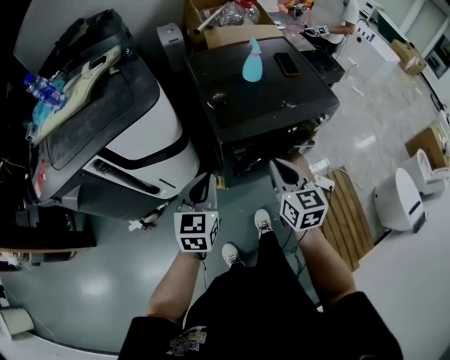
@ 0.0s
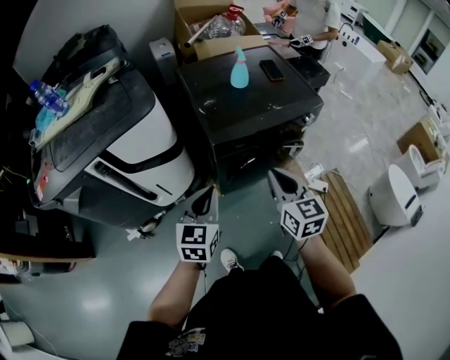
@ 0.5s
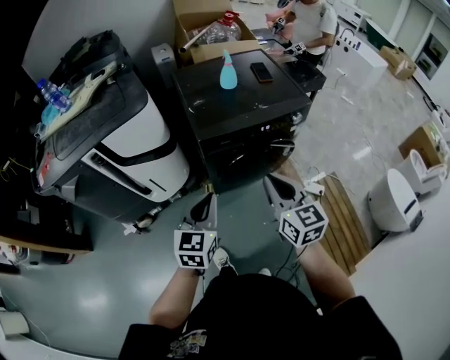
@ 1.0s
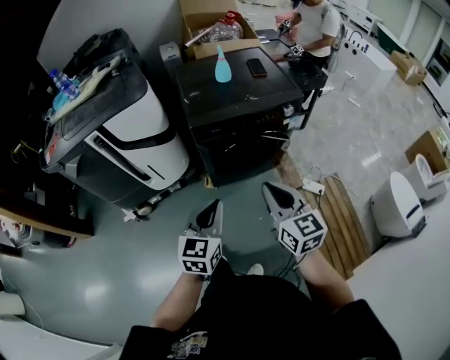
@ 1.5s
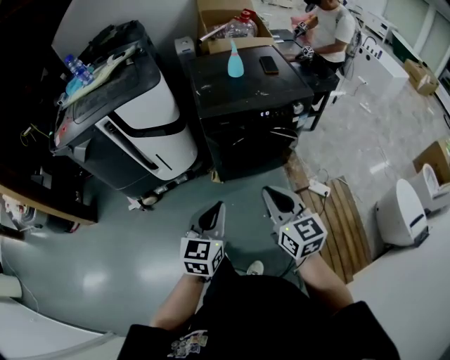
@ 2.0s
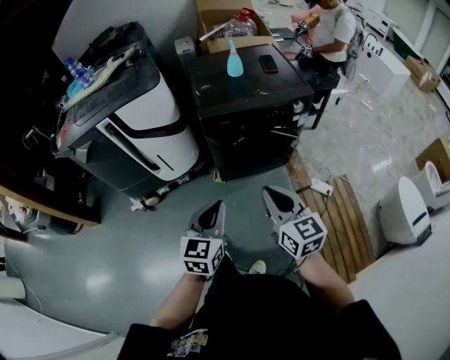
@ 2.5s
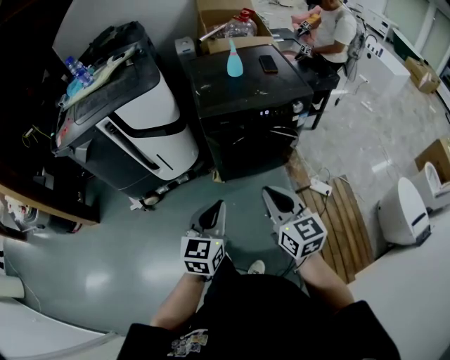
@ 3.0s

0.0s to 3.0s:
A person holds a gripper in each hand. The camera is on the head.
0.0s to 1.5s: Both grippers travel together backward and to the right, about 30 cm.
1.5s to 3.0s: The grippers stay close to where they were, moving slightly.

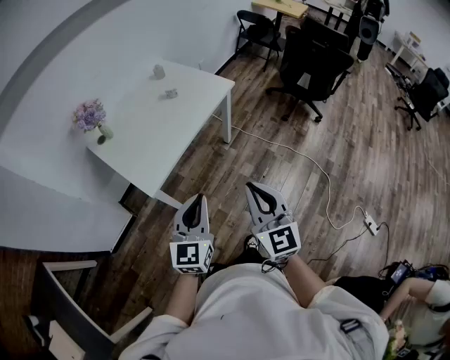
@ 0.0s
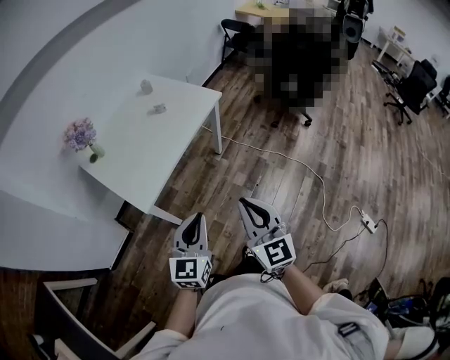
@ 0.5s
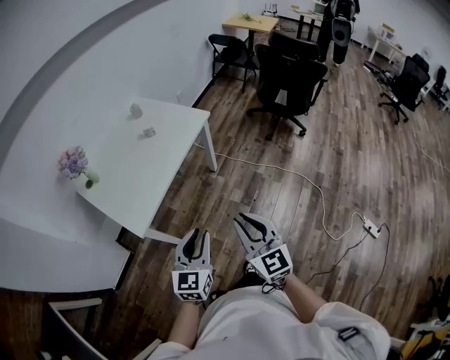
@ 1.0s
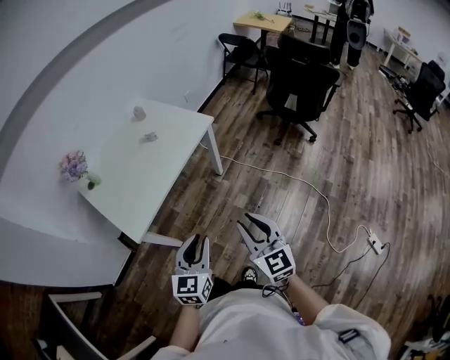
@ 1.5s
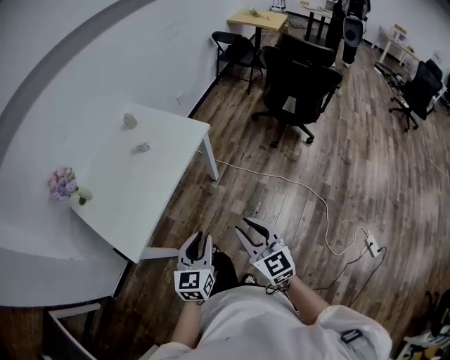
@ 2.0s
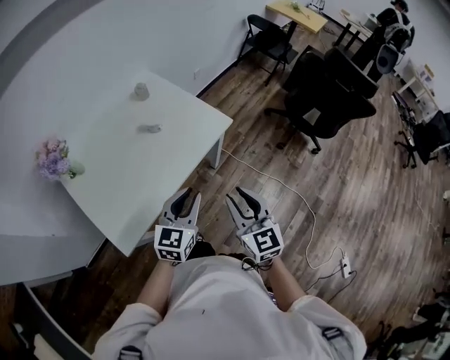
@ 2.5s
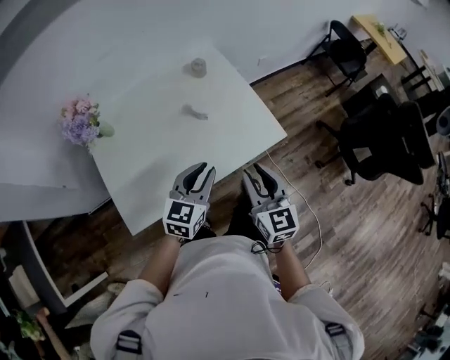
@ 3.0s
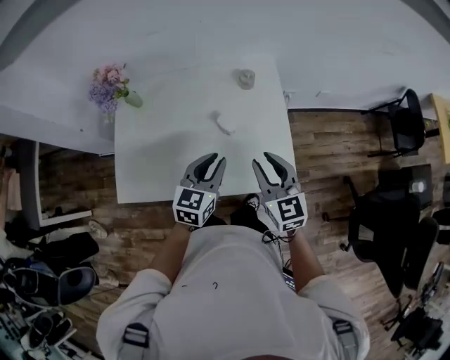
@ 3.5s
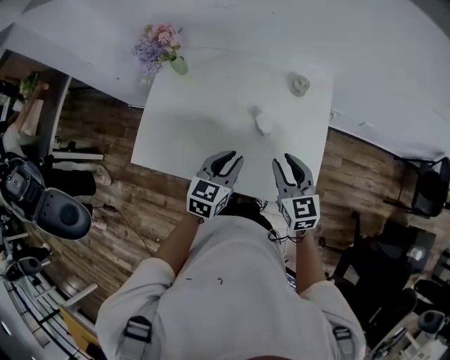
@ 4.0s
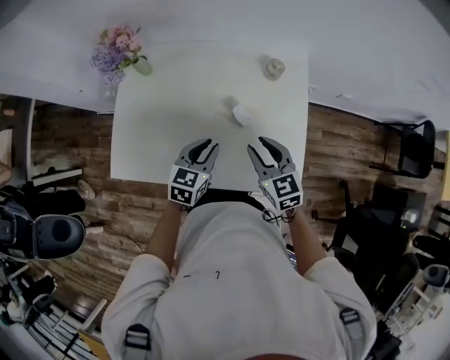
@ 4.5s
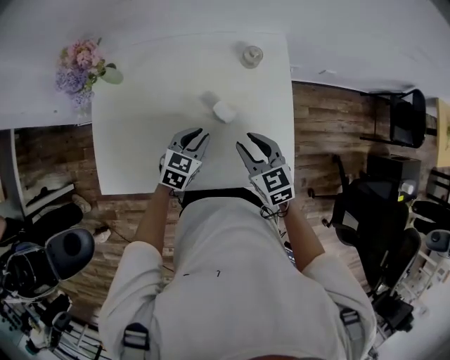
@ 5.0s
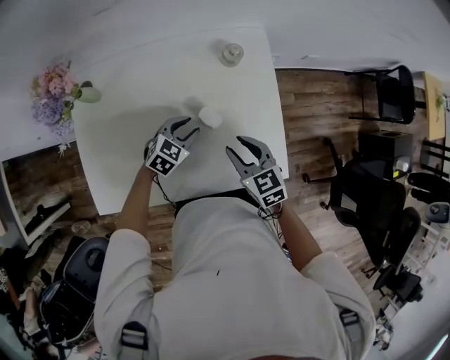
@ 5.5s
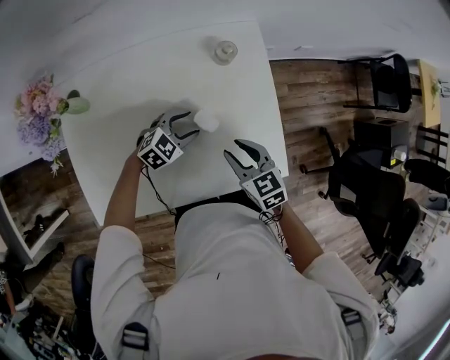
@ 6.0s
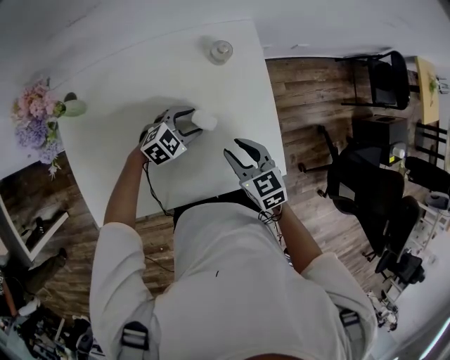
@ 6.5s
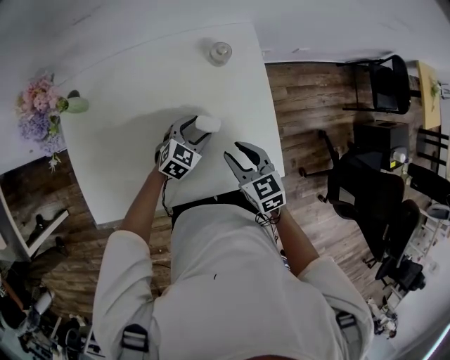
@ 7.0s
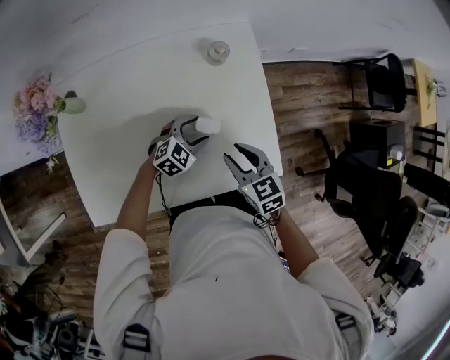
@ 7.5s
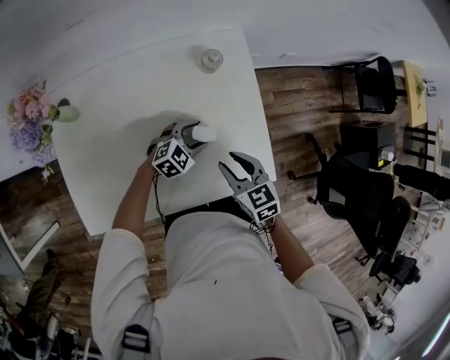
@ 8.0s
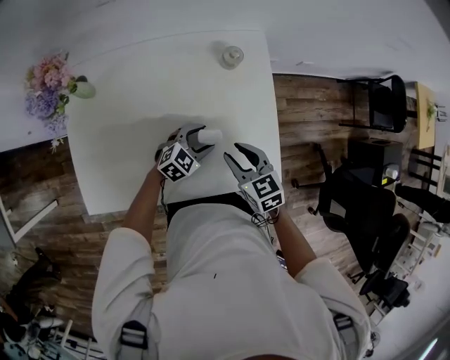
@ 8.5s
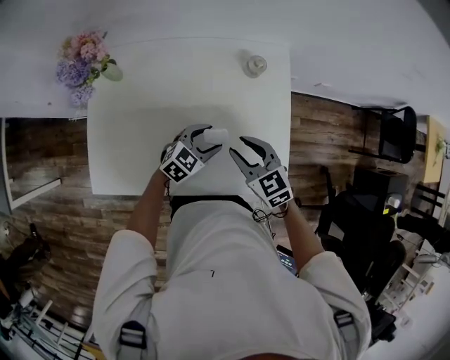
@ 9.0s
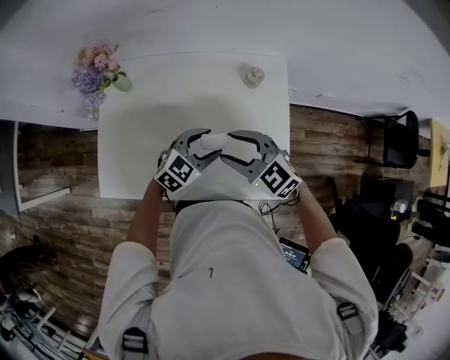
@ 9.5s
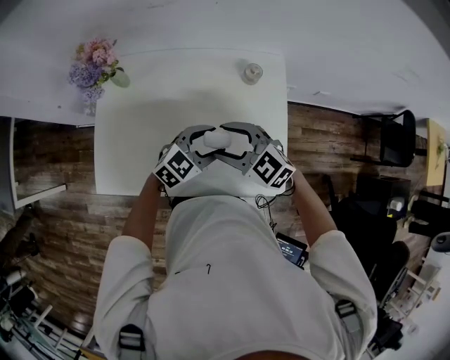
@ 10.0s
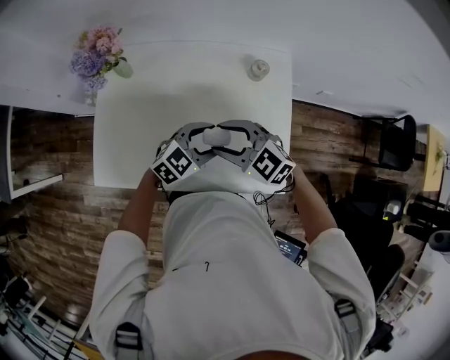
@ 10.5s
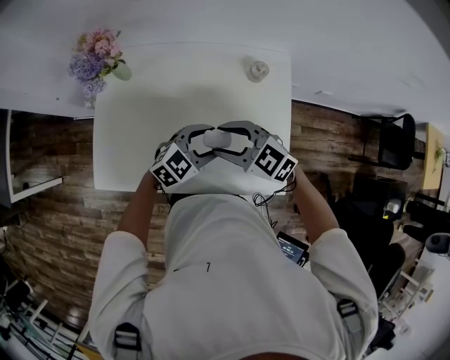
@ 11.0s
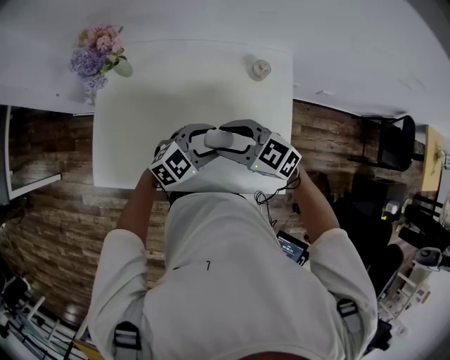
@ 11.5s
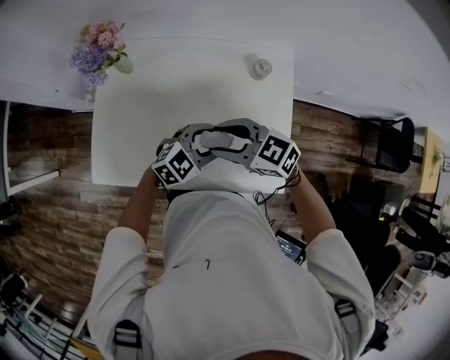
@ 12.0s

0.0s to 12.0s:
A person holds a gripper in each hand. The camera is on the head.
0.0s to 2.0s: The two grippers go roughly 20 cm forward, to the right and downward. The right gripper opens.
2.0s to 4.0s: The pair of grippers is taken approximately 50 cm. The right gripper rotates some 60 degrees, while the left gripper turns by roughly 50 degrees.
4.0s to 6.0s: The left gripper travels downward by approximately 15 cm, swivels about 60 degrees, and opens up. Meanwhile the right gripper moves downward, some 10 cm, and rotates some 20 degrees.
6.0s to 8.0s: The left gripper is displaced to the right by some 5 cm.
8.0s to 10.0s: The left gripper heads upward, covering about 15 cm. Meanwhile the right gripper is displaced upward by approximately 10 cm, rotates approximately 50 degrees, and opens.

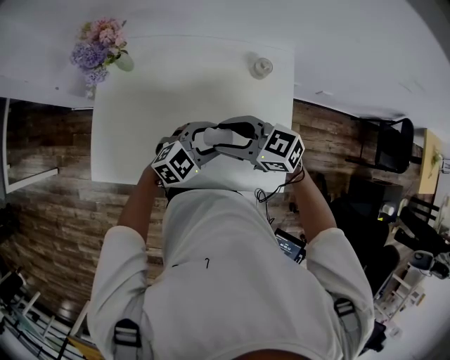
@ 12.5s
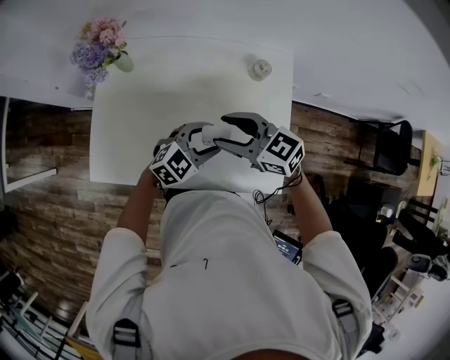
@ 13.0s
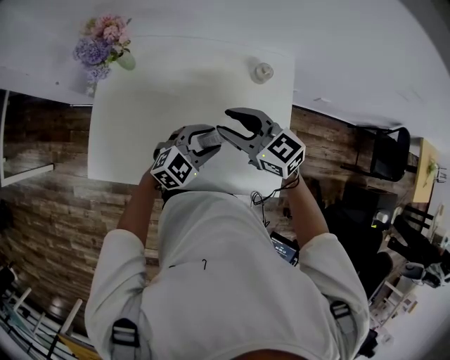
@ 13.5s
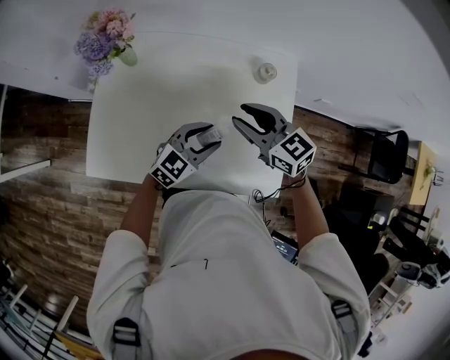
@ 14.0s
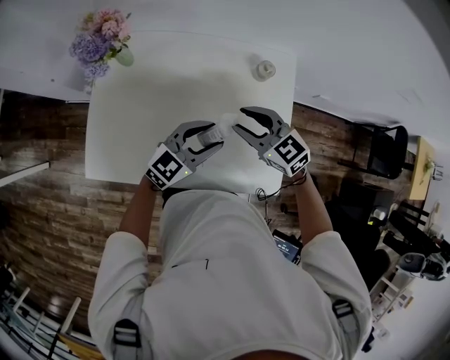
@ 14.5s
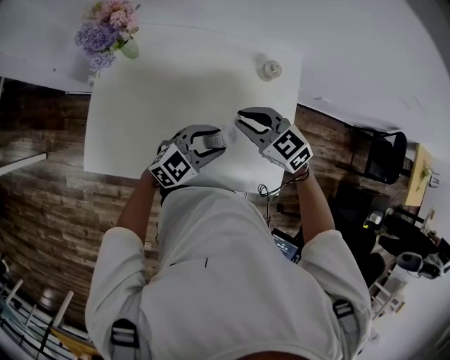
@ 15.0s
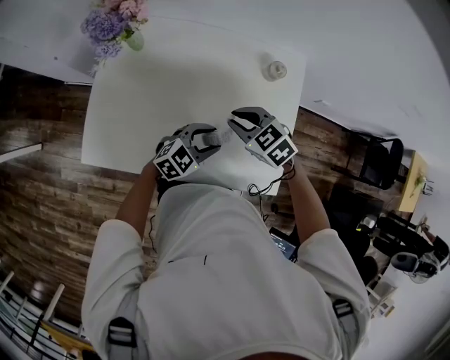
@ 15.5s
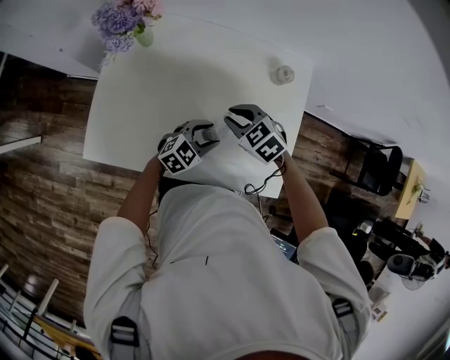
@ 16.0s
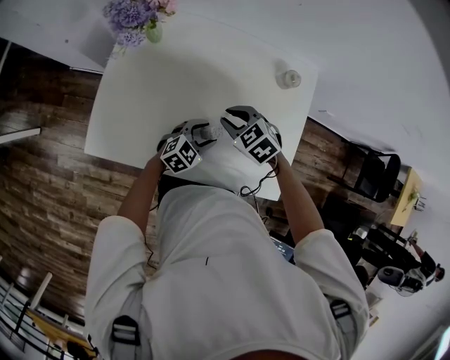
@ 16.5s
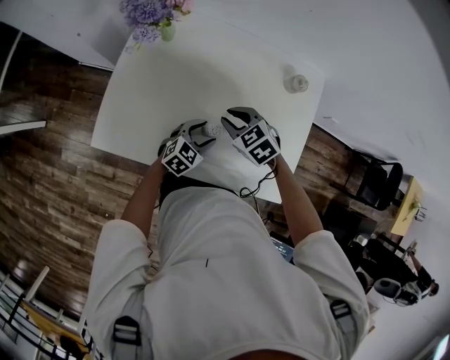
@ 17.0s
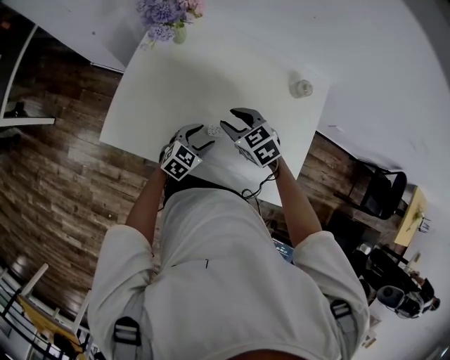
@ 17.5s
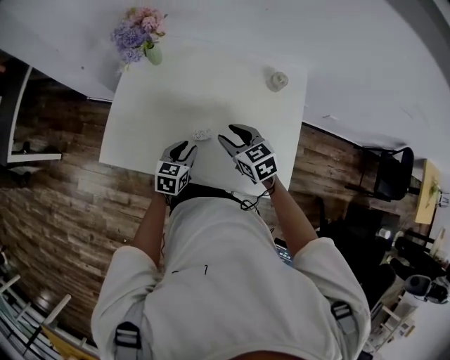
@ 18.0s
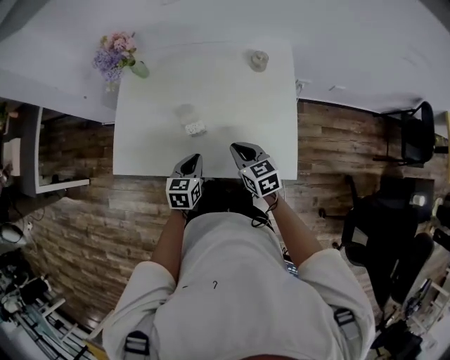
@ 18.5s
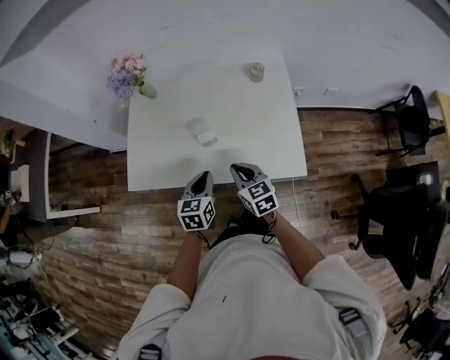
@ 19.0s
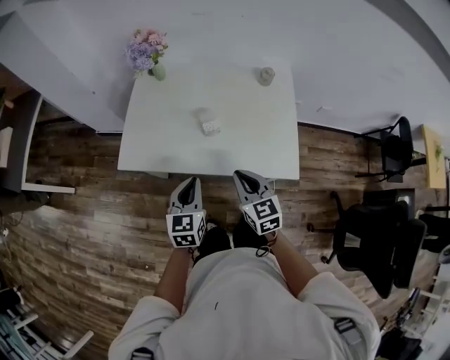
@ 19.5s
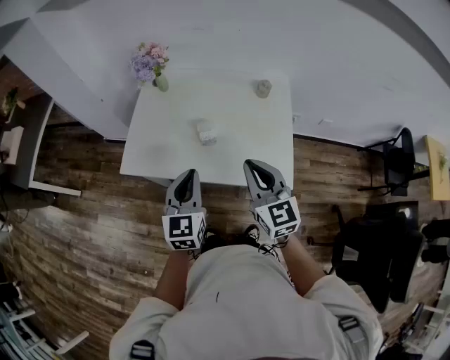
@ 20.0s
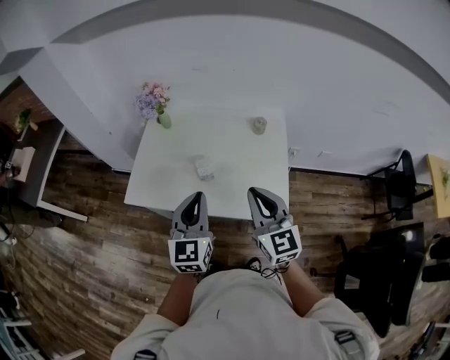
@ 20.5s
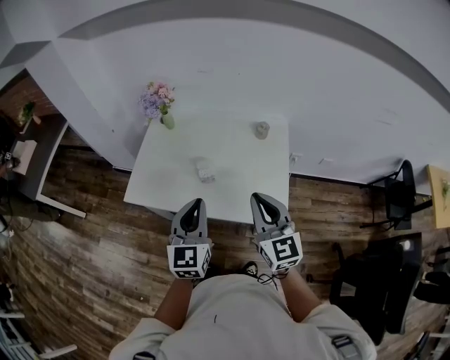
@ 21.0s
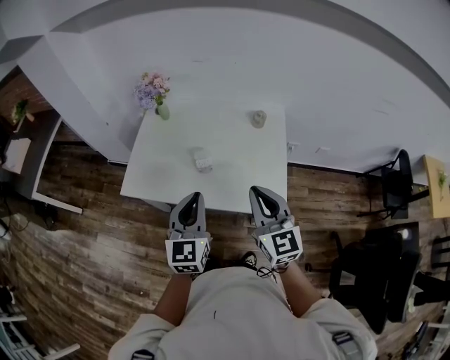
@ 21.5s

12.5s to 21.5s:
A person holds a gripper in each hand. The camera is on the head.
12.5s to 14.5s: The right gripper shifts by about 10 cm, and swivels approximately 20 degrees. The left gripper turns by some 20 degrees.
14.5s to 17.0s: The right gripper is displaced to the left and downward by some 15 cm, and swivels about 20 degrees; the left gripper moves downward and to the left, roughly 20 cm, and rotates approximately 30 degrees.
17.0s to 19.5s: The left gripper moves backward, upward and to the left, some 30 cm, swivels approximately 40 degrees, and closes its fingers, while the right gripper goes approximately 25 cm backward, turns by about 40 degrees, and closes.
19.5s to 21.5s: Both grippers move upward and to the right, about 20 cm. The right gripper rotates approximately 20 degrees.

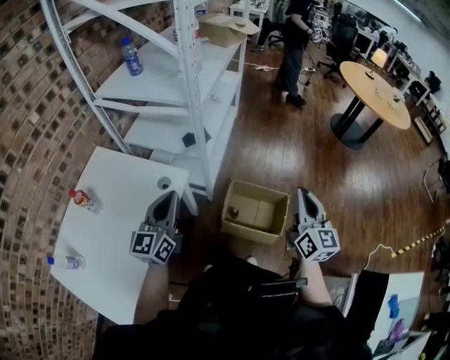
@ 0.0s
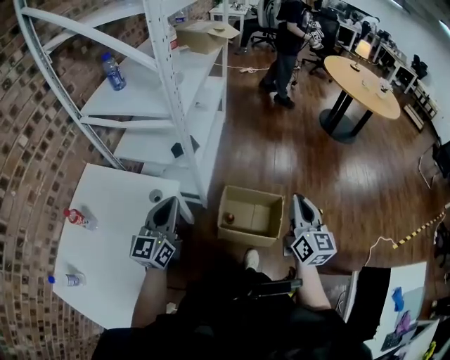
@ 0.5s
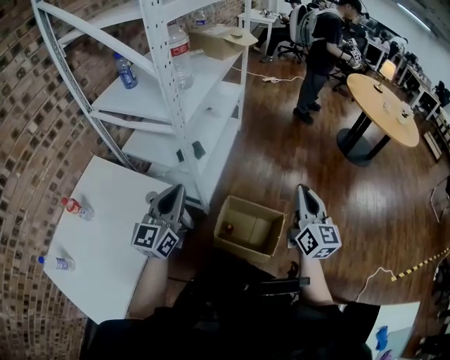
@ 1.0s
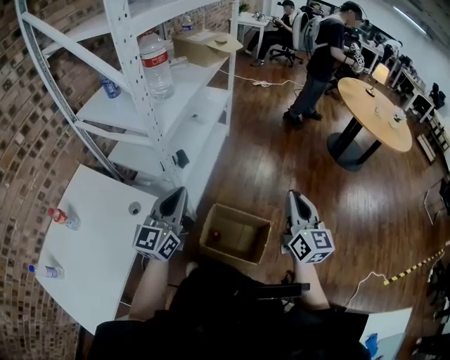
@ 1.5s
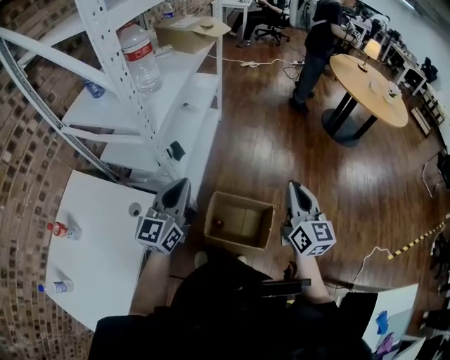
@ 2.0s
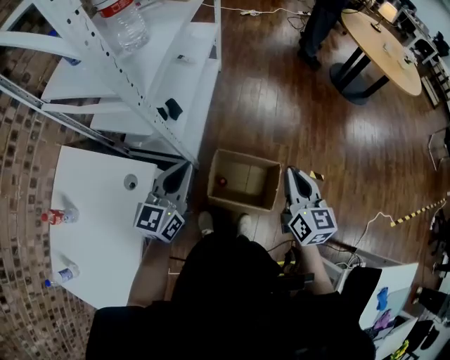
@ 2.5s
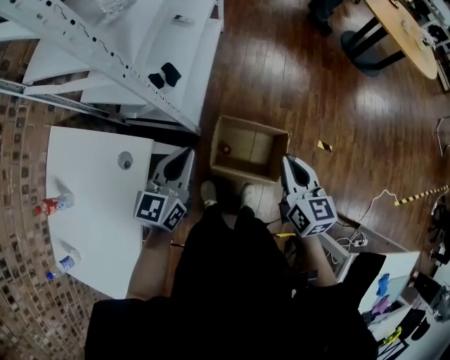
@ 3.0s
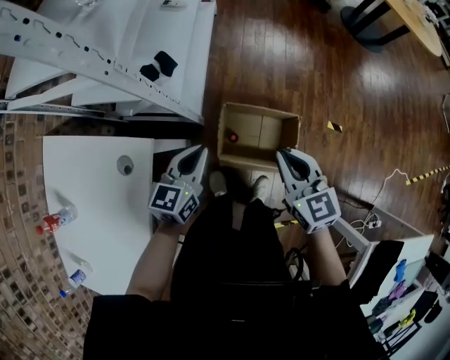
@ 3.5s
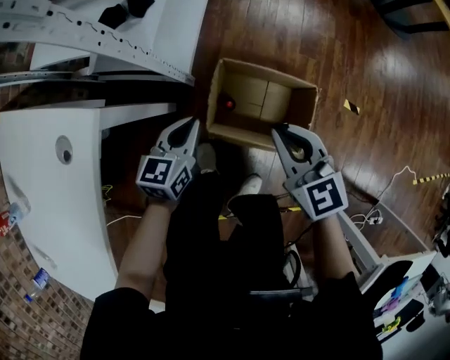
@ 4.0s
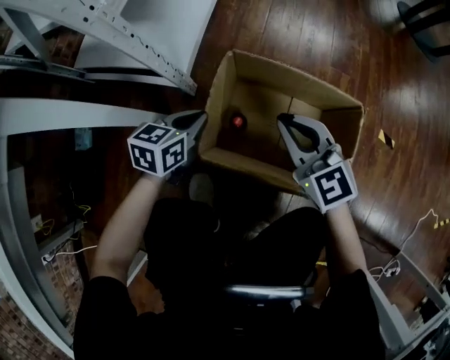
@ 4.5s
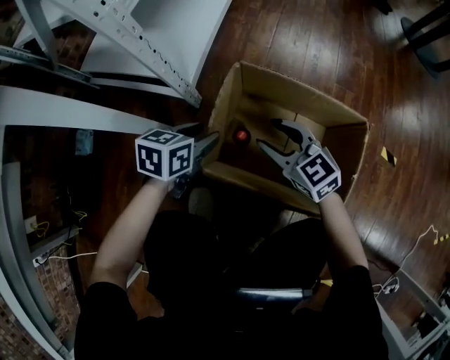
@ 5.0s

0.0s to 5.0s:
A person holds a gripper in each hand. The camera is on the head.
0.0s to 2.5s: The right gripper is displaced forward and downward by some 15 cm. Meanwhile the left gripper goes roughly 25 cm forward and to the right.
2.5s to 5.0s: Both grippers move downward, roughly 70 cm. The left gripper points its fingers roughly 40 degrees further downward, and opens its fingers. Meanwhile the right gripper turns by some 50 degrees, and opens.
